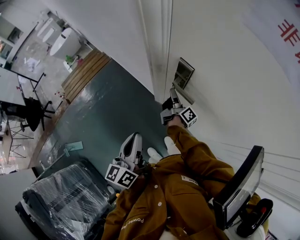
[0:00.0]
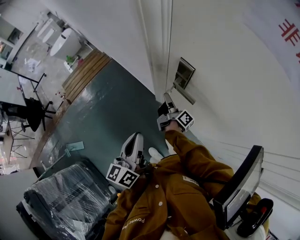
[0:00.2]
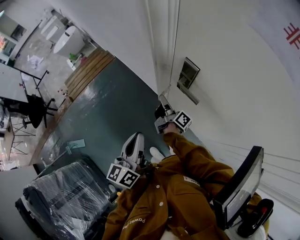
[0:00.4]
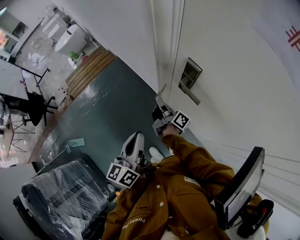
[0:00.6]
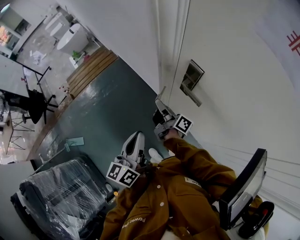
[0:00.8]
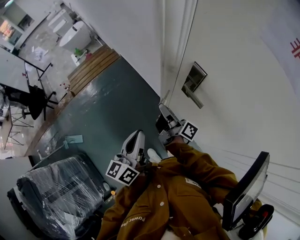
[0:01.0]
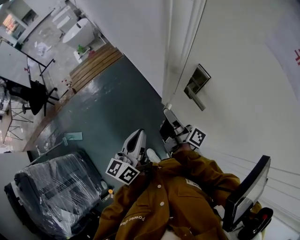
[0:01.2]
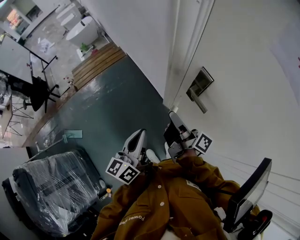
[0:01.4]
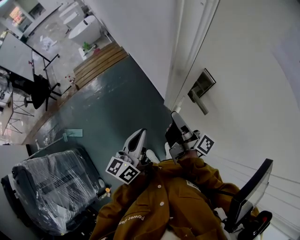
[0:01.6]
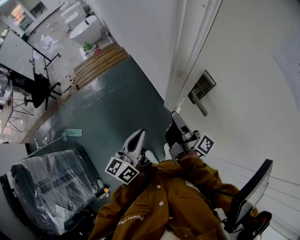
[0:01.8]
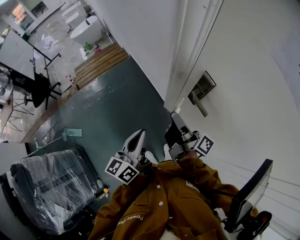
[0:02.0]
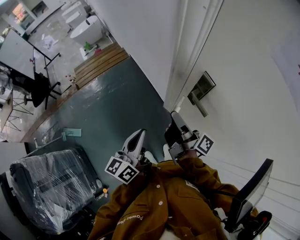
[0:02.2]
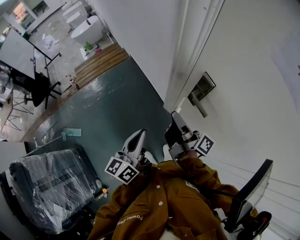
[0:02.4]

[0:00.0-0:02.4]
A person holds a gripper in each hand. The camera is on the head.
0:00.0 to 0:01.2: The right gripper travels upward, backward and to the left by about 20 cm, and swivels some 30 degrees.
0:01.2 to 0:02.4: The right gripper ends up about 5 cm from where it was.

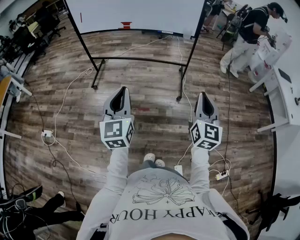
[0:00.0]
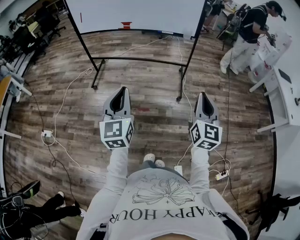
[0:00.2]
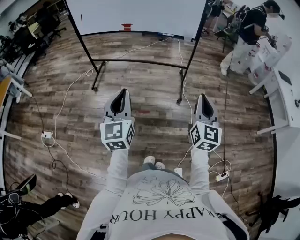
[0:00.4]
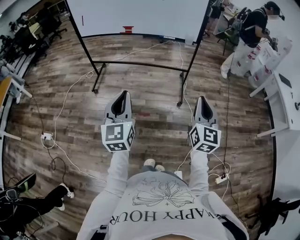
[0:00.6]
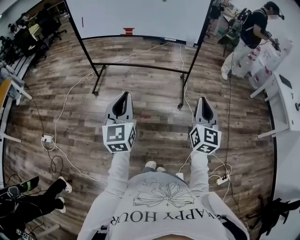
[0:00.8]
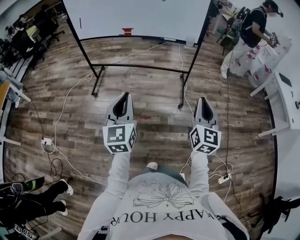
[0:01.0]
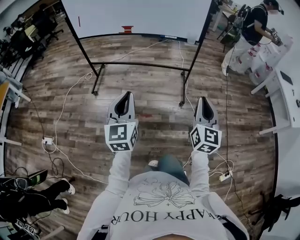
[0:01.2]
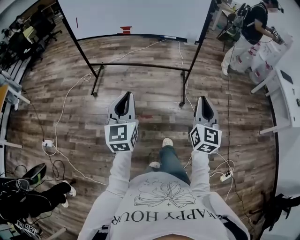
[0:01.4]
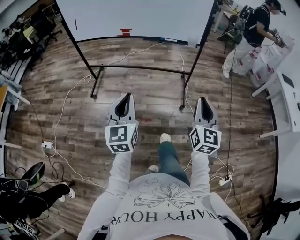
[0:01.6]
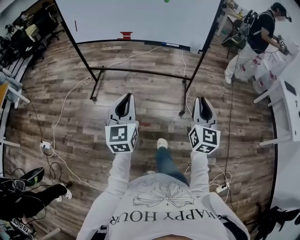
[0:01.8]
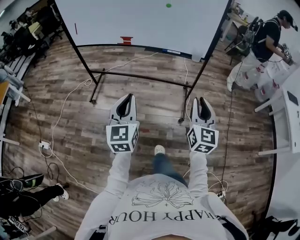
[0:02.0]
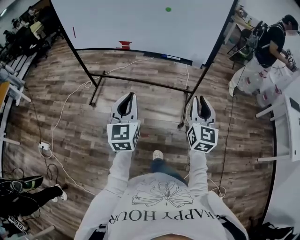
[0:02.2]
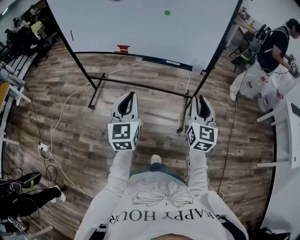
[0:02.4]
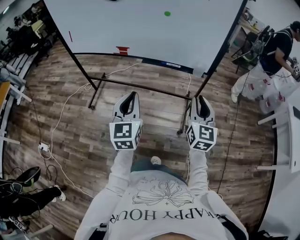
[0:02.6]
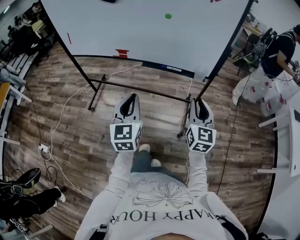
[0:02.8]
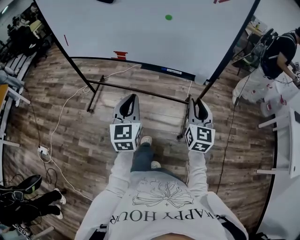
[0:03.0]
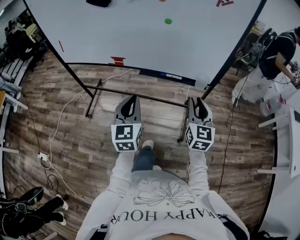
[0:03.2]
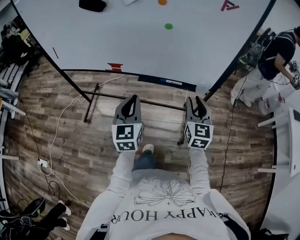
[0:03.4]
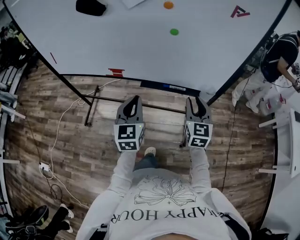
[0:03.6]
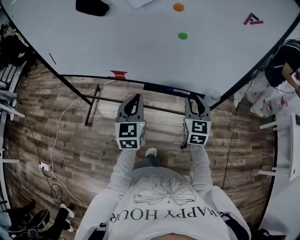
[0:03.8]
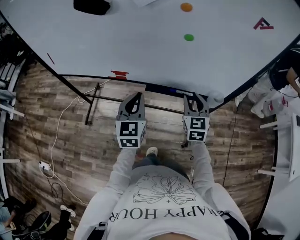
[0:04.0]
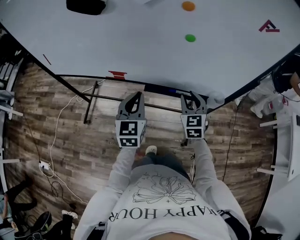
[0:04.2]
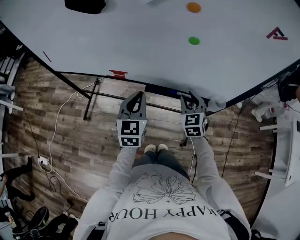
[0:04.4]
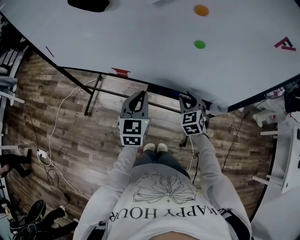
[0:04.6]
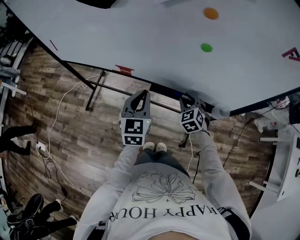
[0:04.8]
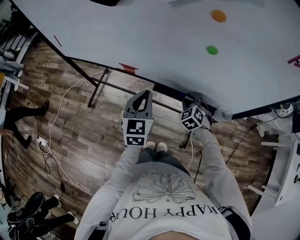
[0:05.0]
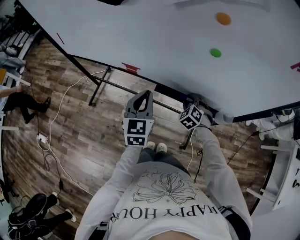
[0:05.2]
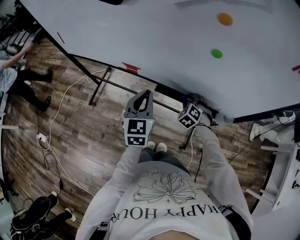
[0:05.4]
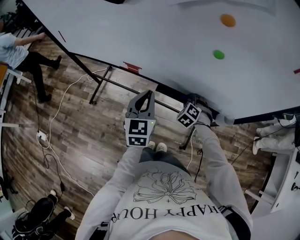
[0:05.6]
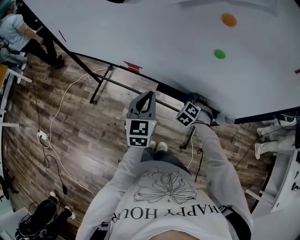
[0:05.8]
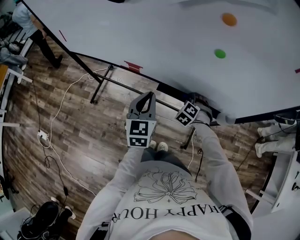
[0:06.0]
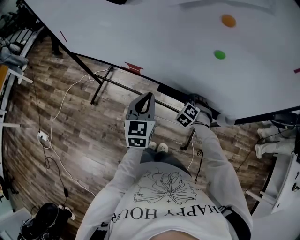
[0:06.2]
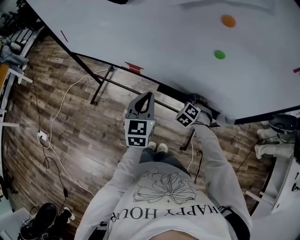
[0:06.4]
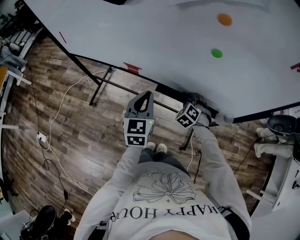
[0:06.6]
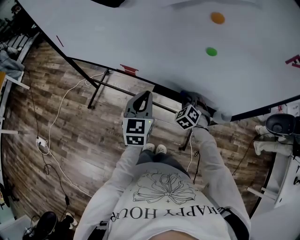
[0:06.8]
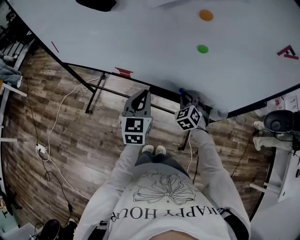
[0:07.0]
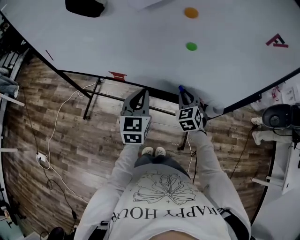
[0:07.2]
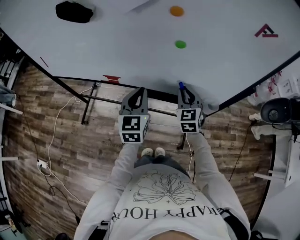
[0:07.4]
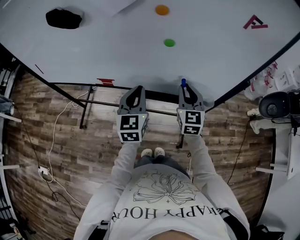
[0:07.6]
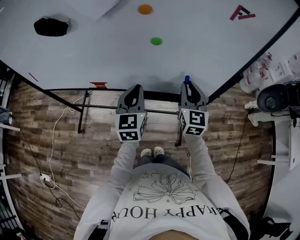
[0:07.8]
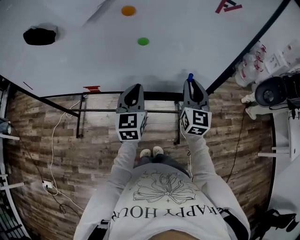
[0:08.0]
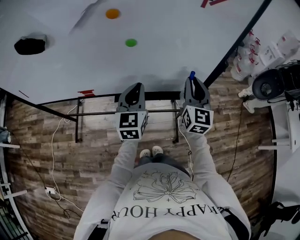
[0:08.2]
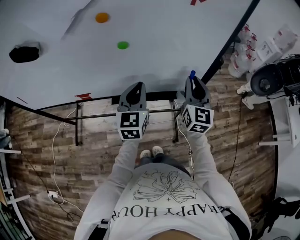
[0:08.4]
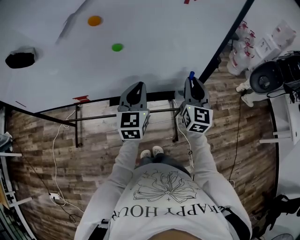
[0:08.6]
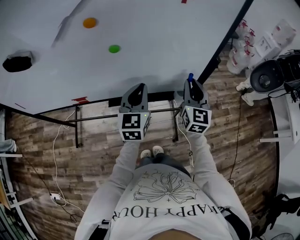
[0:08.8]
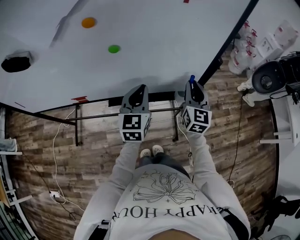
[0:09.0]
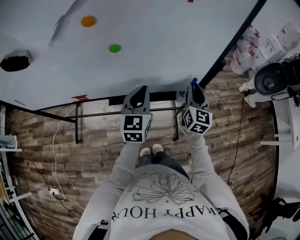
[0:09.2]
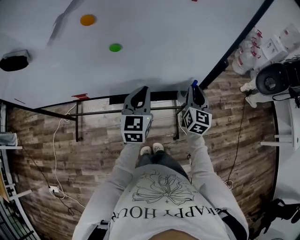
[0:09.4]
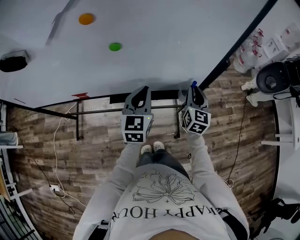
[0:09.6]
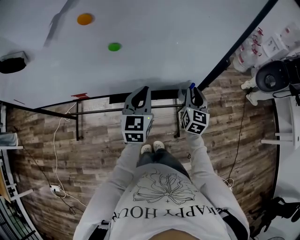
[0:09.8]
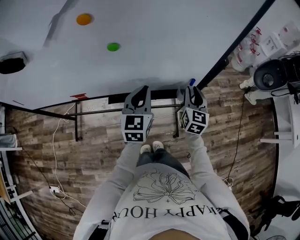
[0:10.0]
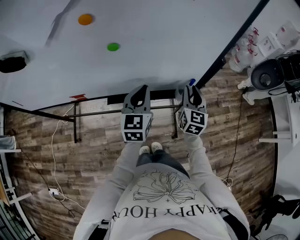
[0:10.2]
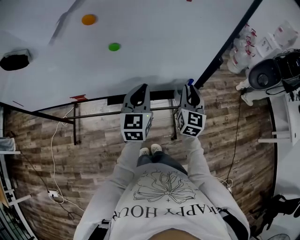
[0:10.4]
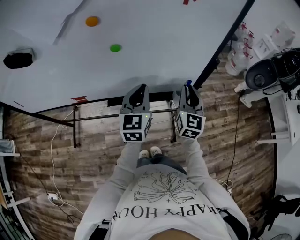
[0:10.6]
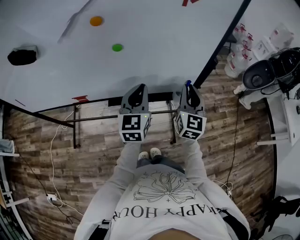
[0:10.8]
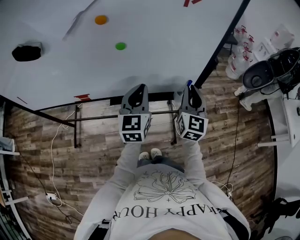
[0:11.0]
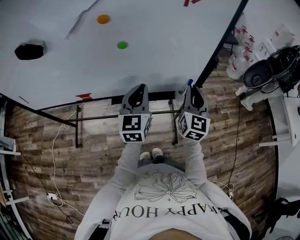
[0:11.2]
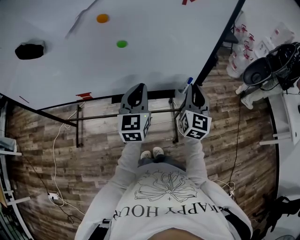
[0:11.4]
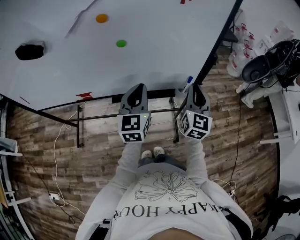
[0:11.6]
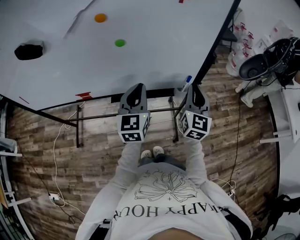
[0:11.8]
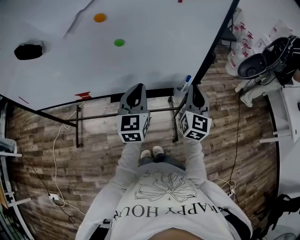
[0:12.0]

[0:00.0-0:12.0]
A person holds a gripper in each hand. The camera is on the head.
0:00.0 to 0:01.6: Both grippers travel together forward, approximately 15 cm.
0:01.6 to 0:03.0: Both grippers travel together forward, approximately 35 cm.
0:03.0 to 0:04.4: The right gripper heads forward and downward, covering some 30 cm, and changes its angle by some 30 degrees. Meanwhile the left gripper is displaced forward by about 25 cm.
0:04.4 to 0:06.0: The right gripper moves downward, about 15 cm, and twists roughly 40 degrees counterclockwise, seen from behind.
0:06.0 to 0:07.6: The right gripper moves upward, some 20 cm, and tilts its fingers approximately 40 degrees upward; the left gripper travels to the right and upward by some 10 cm.
0:07.6 to 0:09.0: The grippers both shift to the right by some 15 cm. The right gripper rotates some 20 degrees.
0:09.0 to 0:10.4: The right gripper goes downward and returns, some 10 cm each way.
0:10.4 to 0:12.0: The left gripper moves backward, some 5 cm, while the right gripper travels upward and backward by roughly 10 cm.

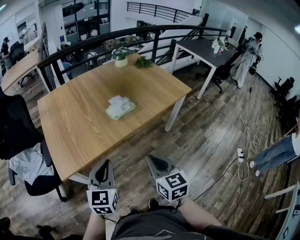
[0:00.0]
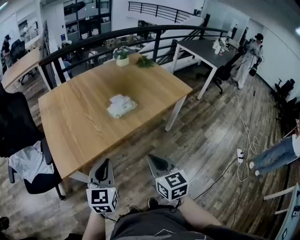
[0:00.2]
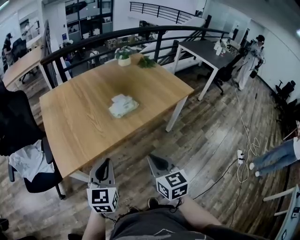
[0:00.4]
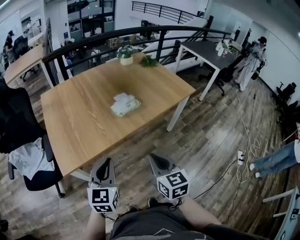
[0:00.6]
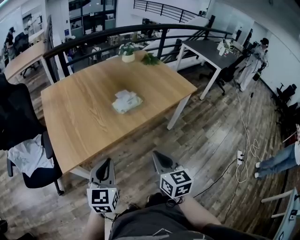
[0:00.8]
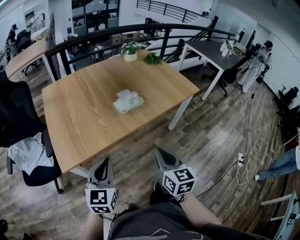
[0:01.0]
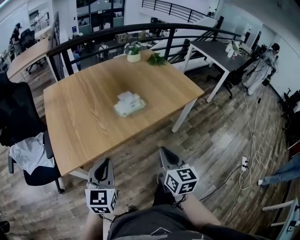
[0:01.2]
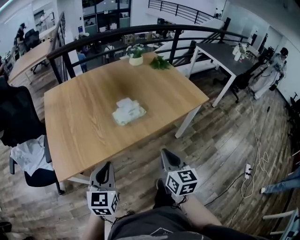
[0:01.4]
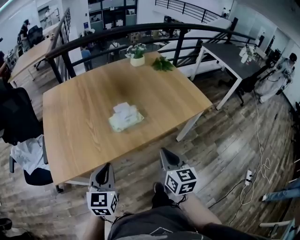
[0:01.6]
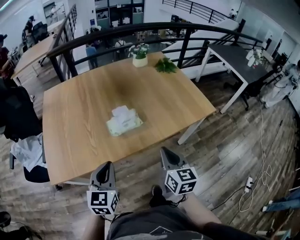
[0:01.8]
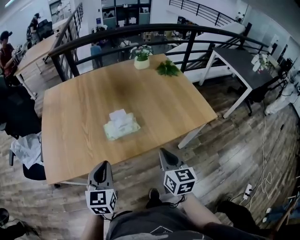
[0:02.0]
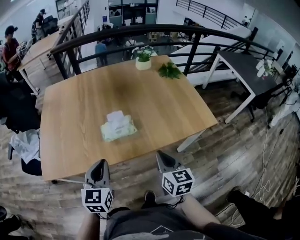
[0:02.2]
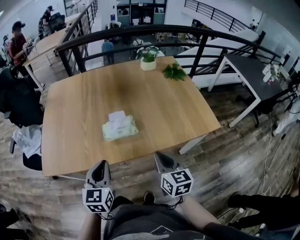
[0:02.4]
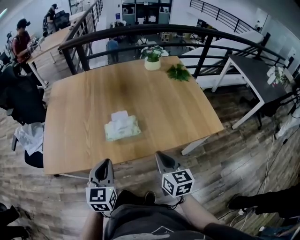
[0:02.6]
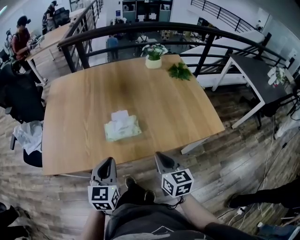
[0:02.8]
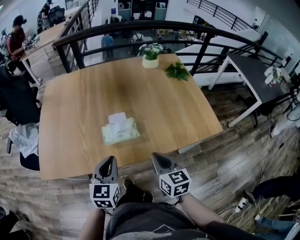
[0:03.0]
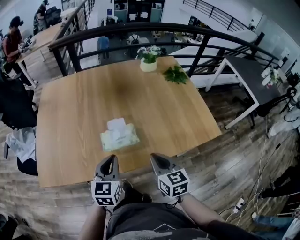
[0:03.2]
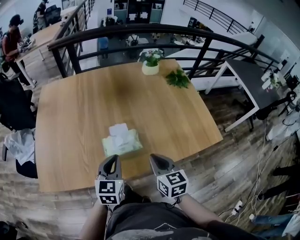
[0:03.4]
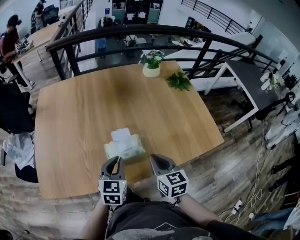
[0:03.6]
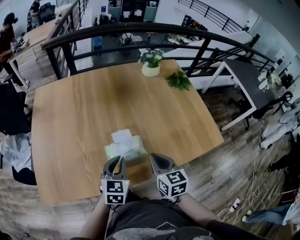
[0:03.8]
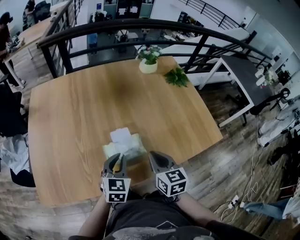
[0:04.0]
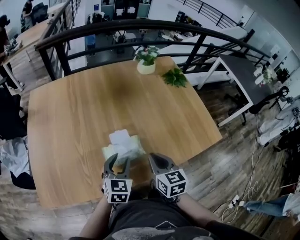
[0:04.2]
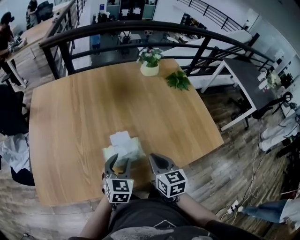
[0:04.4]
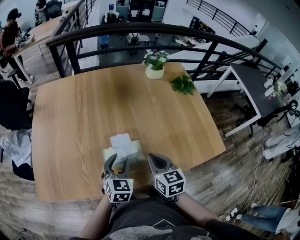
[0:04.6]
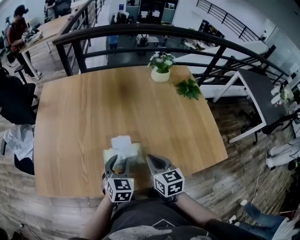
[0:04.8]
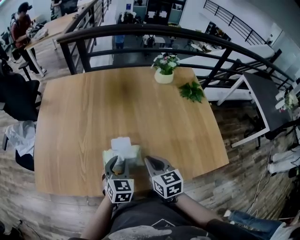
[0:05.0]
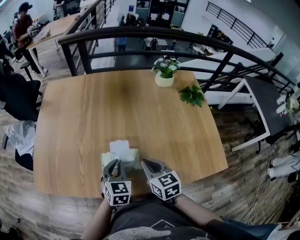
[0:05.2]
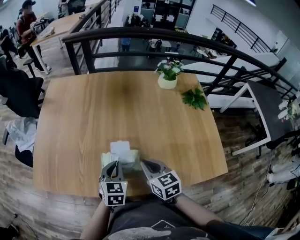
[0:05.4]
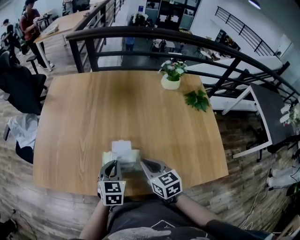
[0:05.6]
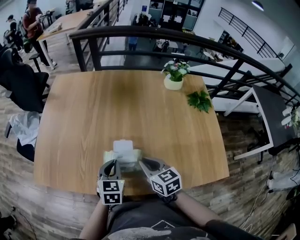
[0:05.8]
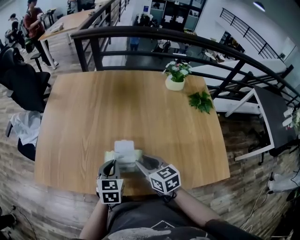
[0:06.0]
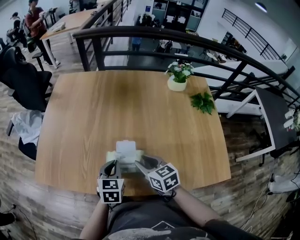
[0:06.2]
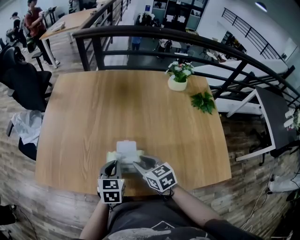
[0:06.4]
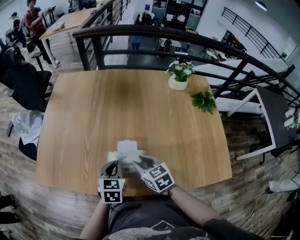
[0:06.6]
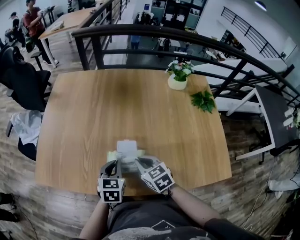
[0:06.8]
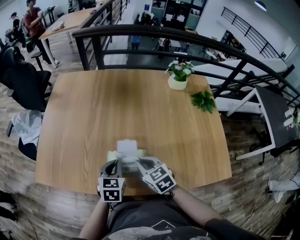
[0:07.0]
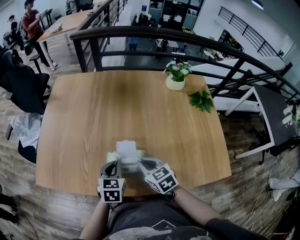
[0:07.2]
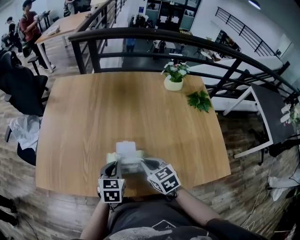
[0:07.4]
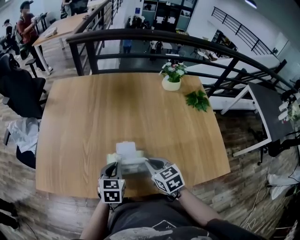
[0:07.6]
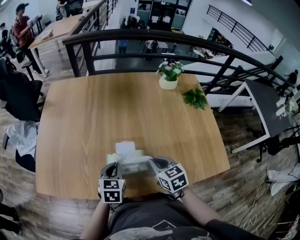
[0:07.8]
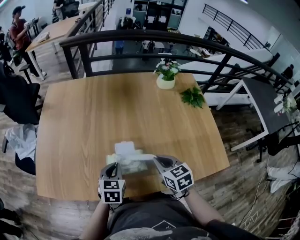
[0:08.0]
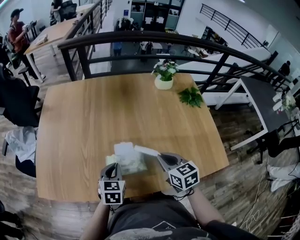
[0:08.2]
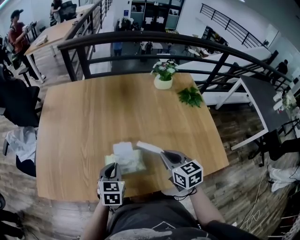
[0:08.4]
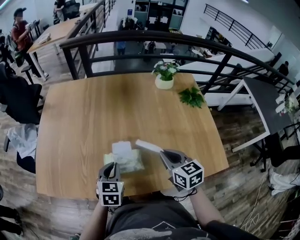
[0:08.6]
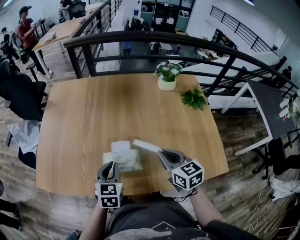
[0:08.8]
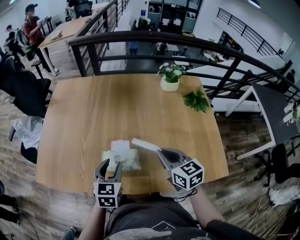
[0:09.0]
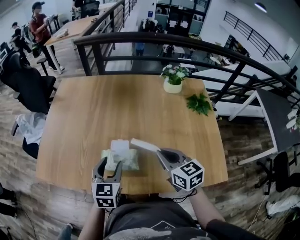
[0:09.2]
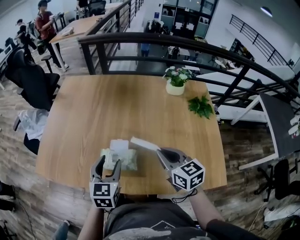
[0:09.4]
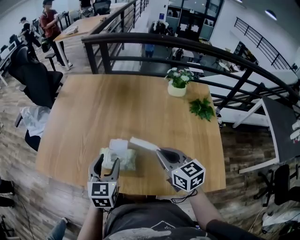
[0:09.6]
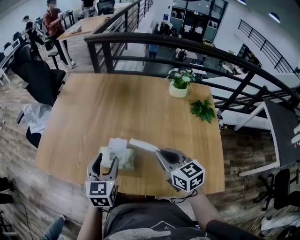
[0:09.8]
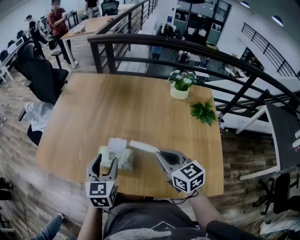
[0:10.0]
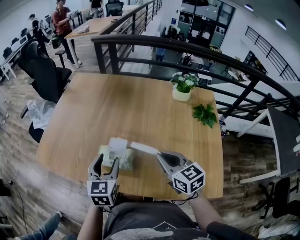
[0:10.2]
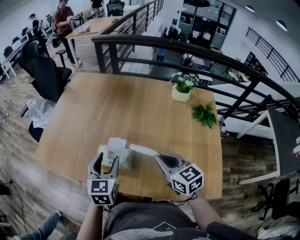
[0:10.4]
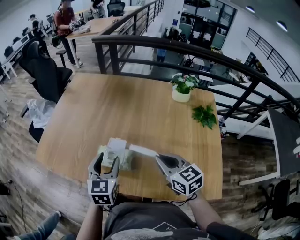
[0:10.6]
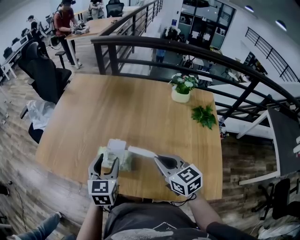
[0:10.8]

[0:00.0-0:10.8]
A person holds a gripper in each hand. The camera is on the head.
0:00.0 to 0:01.6: The left gripper heads forward, covering some 10 cm; the right gripper travels forward and to the right by approximately 20 cm.
0:01.6 to 0:03.0: The grippers both shift forward and to the right by some 15 cm. The right gripper changes its angle by about 20 degrees.
0:03.0 to 0:04.6: The left gripper moves forward and downward, about 15 cm, and opens; the right gripper is displaced forward by roughly 15 cm.
0:04.6 to 0:06.2: The right gripper is displaced forward by some 5 cm, changes its angle by approximately 30 degrees, and opens its fingers, while the left gripper changes its angle by some 20 degrees, and closes its fingers.
0:06.2 to 0:07.8: The right gripper closes its fingers.
0:07.8 to 0:09.2: The left gripper is displaced upward by approximately 10 cm, and opens its fingers. The right gripper heads upward and to the right, covering approximately 10 cm.
0:09.2 to 0:10.8: There are only small adjustments of the grippers.
